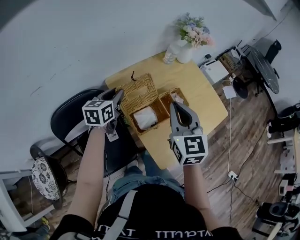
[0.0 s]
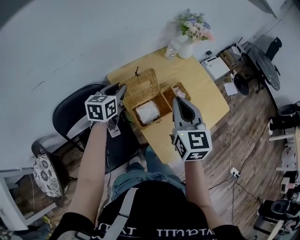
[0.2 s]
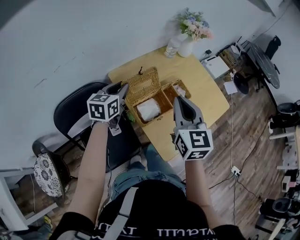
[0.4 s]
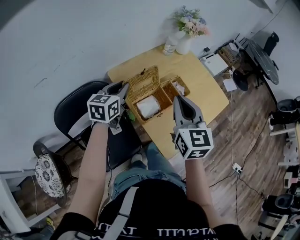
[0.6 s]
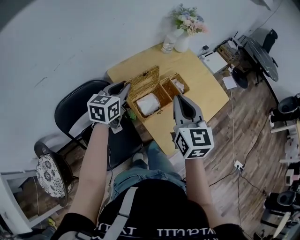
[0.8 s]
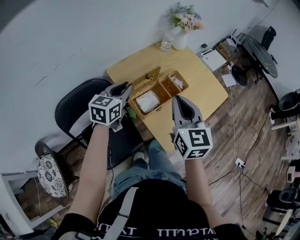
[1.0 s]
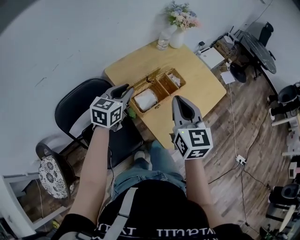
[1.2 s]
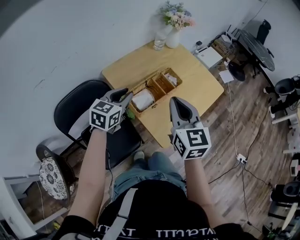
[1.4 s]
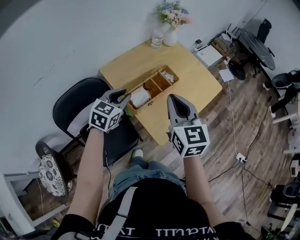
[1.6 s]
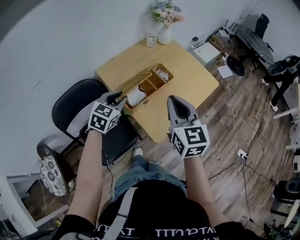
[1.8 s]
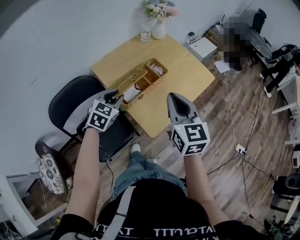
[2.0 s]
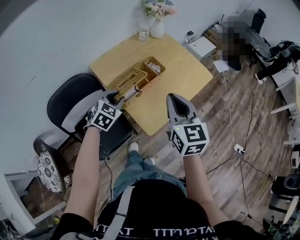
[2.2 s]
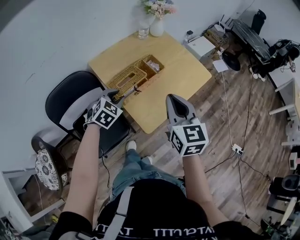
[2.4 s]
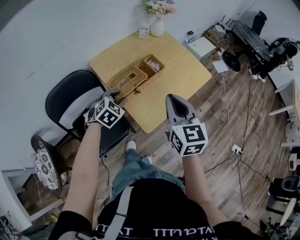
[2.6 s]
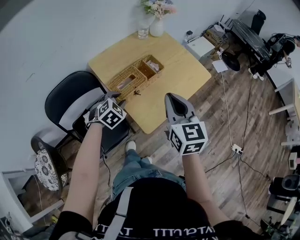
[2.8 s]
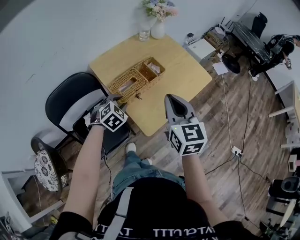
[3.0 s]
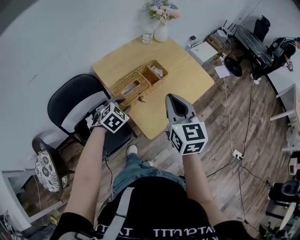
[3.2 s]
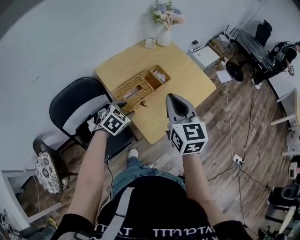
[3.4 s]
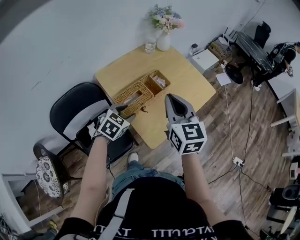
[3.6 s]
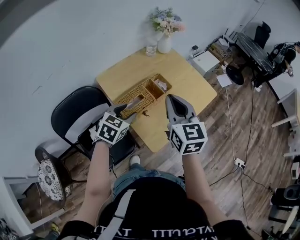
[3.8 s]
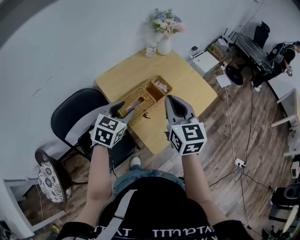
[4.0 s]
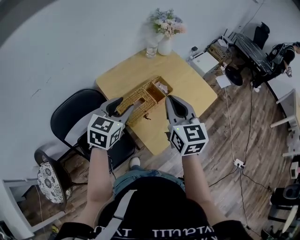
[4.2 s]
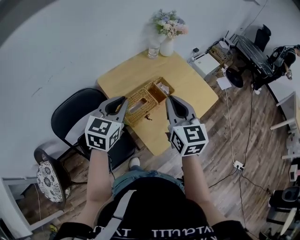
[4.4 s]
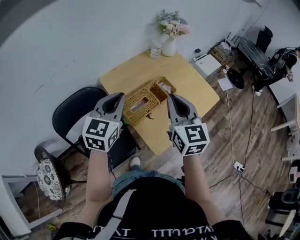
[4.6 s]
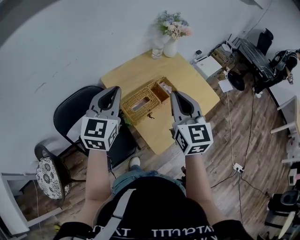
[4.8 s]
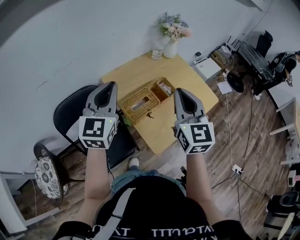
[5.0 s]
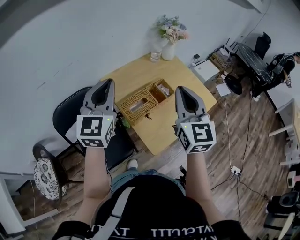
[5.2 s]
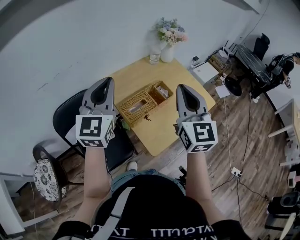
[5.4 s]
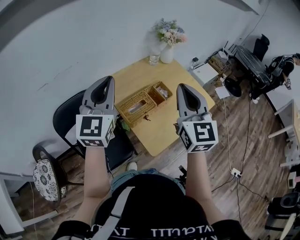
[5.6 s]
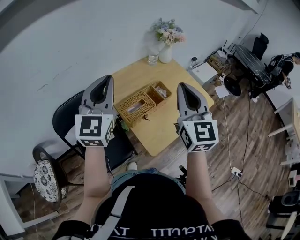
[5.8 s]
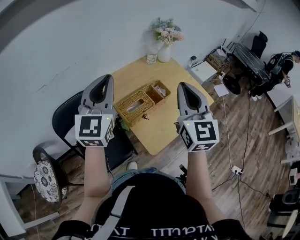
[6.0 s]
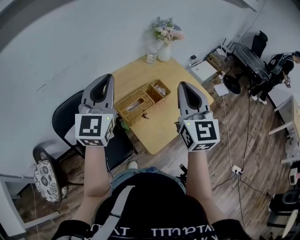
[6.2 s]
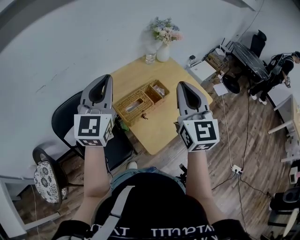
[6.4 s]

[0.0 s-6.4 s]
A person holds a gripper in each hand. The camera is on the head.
0.0 to 1.6 s: The two grippers go about 15 cm backward and to the right. The left gripper swivels approximately 30 degrees.
1.6 to 3.2 s: The right gripper travels to the right by some 5 cm; the left gripper moves downward and to the right, roughly 10 cm, and swivels approximately 30 degrees.
3.2 to 4.8 s: The right gripper goes about 10 cm upward and forward; the left gripper goes roughly 25 cm upward, tips its fingers upward by roughly 40 degrees, and closes its fingers.
4.8 to 6.4 s: Both grippers move upward, approximately 5 cm.

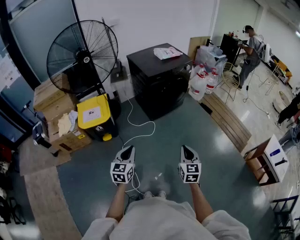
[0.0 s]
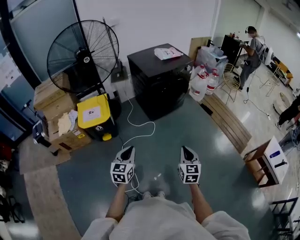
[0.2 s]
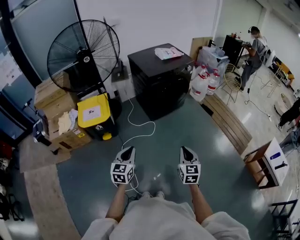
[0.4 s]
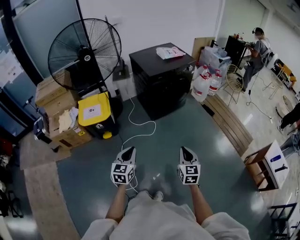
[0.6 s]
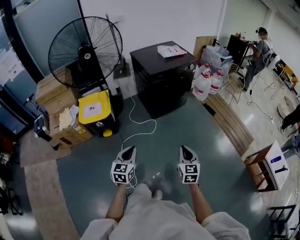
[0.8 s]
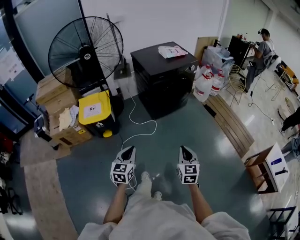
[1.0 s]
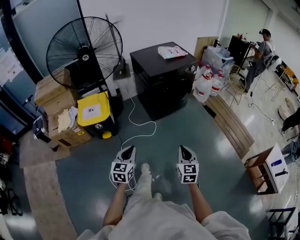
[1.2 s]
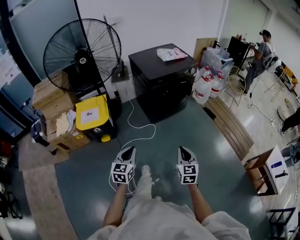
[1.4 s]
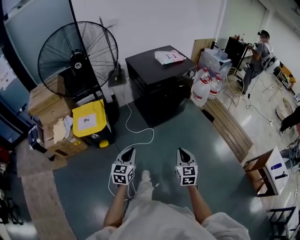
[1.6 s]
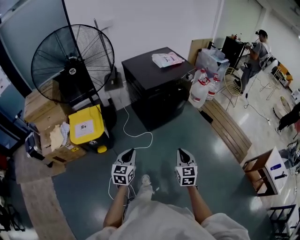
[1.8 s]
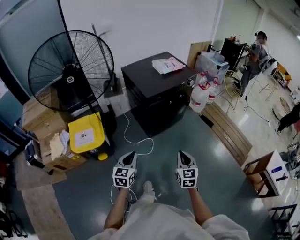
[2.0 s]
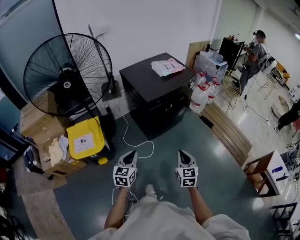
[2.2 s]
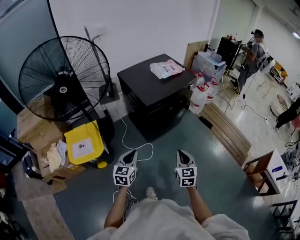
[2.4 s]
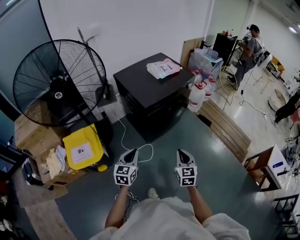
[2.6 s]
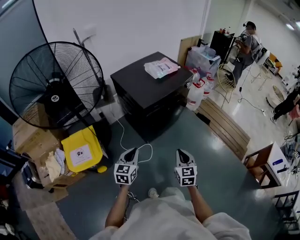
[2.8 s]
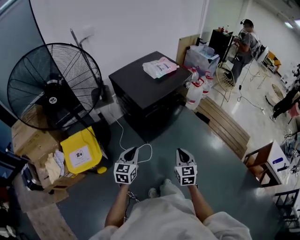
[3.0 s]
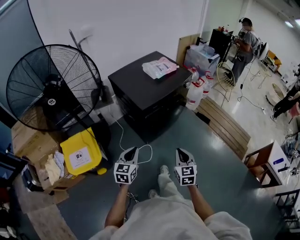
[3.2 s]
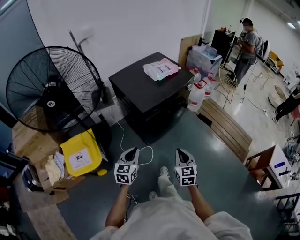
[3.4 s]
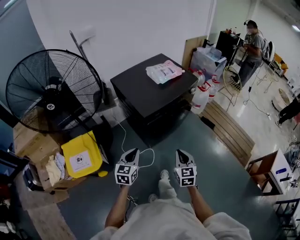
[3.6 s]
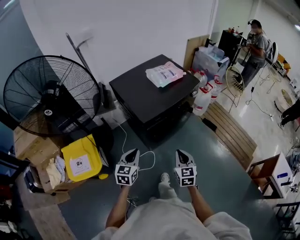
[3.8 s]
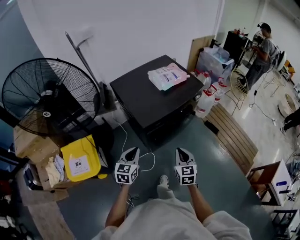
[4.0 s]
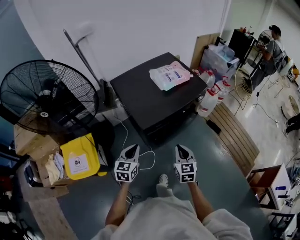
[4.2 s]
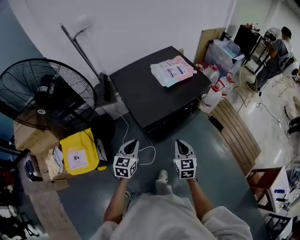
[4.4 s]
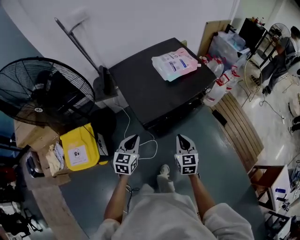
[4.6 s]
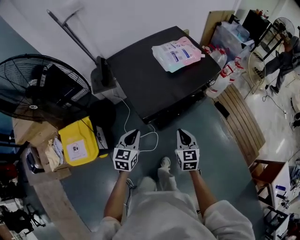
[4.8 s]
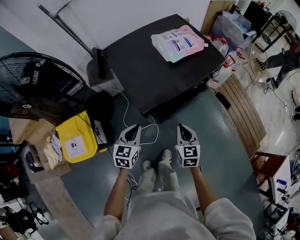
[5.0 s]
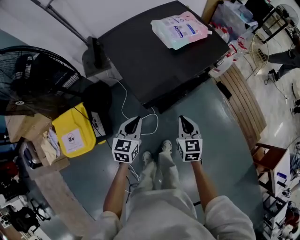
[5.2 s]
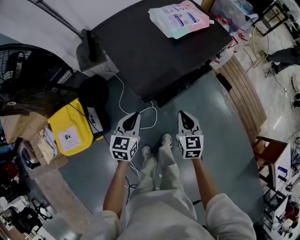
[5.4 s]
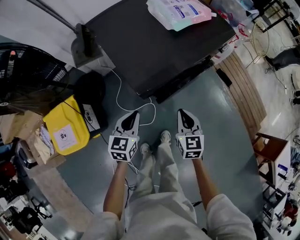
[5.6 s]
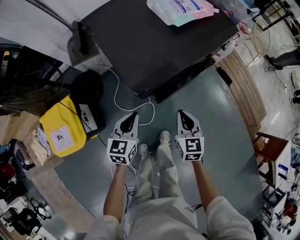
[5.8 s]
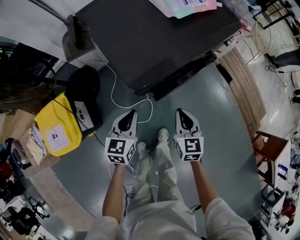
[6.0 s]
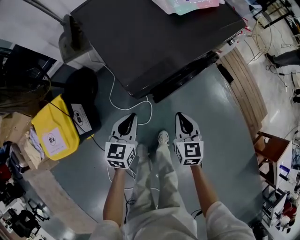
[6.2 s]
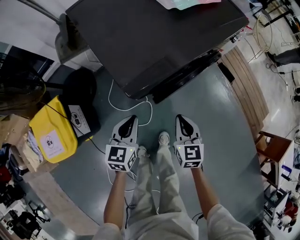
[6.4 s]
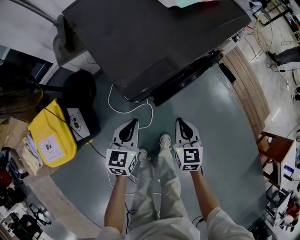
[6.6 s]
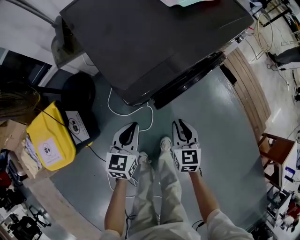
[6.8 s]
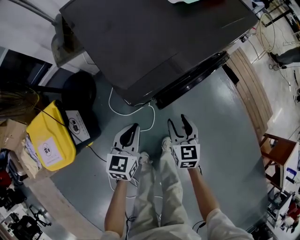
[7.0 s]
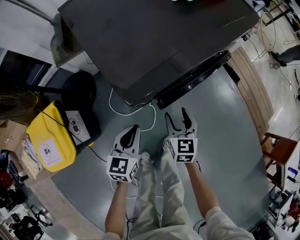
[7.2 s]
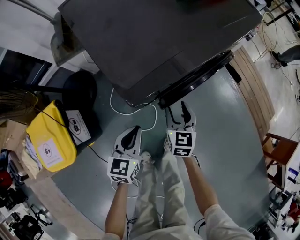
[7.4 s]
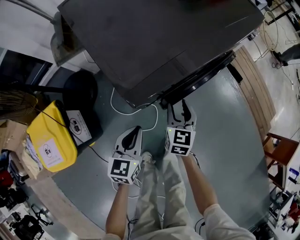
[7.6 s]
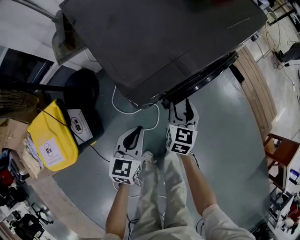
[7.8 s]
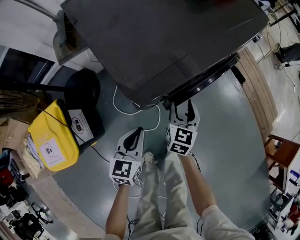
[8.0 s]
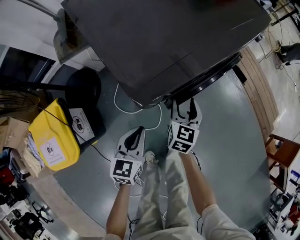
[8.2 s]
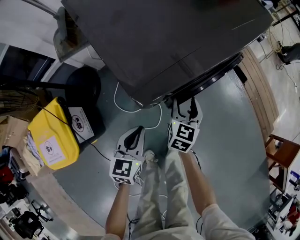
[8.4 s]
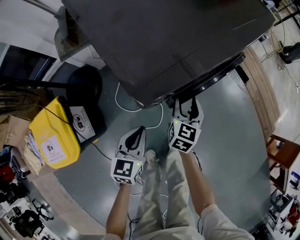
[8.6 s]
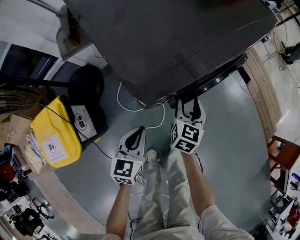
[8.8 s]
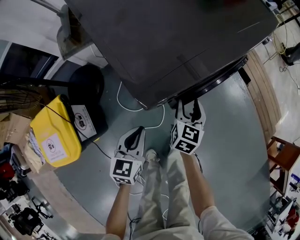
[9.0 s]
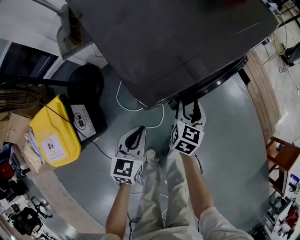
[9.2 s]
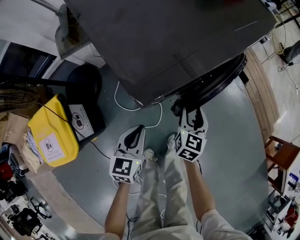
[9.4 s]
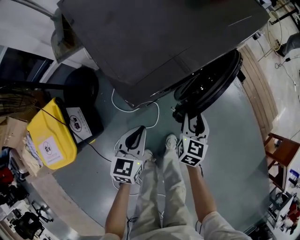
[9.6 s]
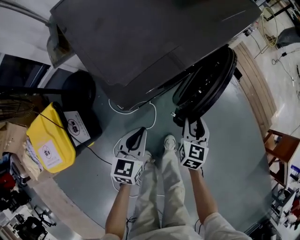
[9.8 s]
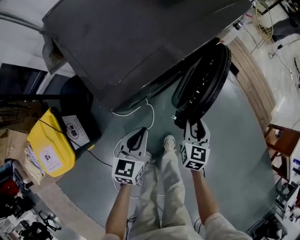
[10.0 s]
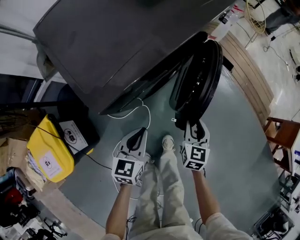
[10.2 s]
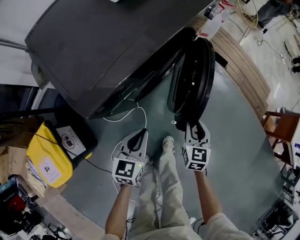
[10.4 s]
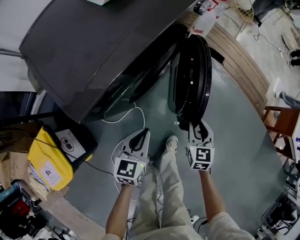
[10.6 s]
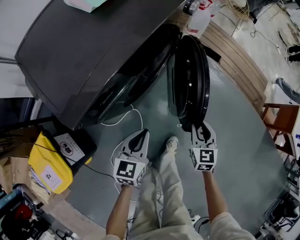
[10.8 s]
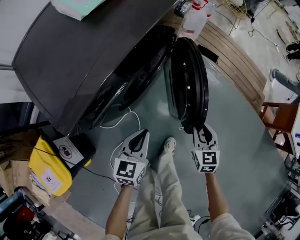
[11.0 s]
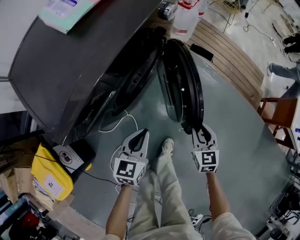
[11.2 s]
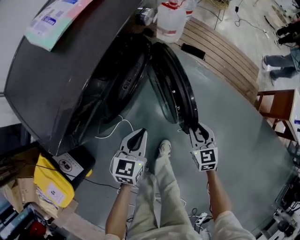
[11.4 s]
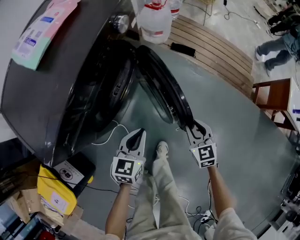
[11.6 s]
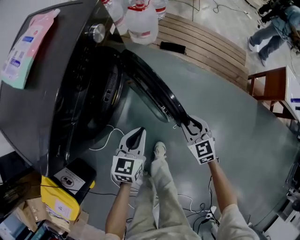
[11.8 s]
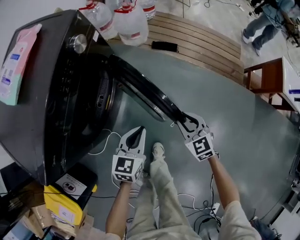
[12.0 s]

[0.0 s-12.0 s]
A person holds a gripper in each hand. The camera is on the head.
0.0 to 1.6 s: The grippers both shift forward by roughly 15 cm.
1.6 to 3.0 s: Both grippers travel together forward, approximately 25 cm.
3.0 to 4.4 s: Both grippers travel together forward, approximately 25 cm.
4.4 to 6.0 s: Both grippers travel together downward, roughly 20 cm.
6.0 to 7.6 s: The right gripper moves downward and forward, approximately 15 cm, and opens its fingers. Meanwhile the left gripper travels downward by approximately 10 cm.
7.6 to 9.0 s: The grippers move only a little.
9.0 to 10.4 s: The grippers both shift to the right by about 15 cm. The right gripper closes up.
10.4 to 12.0 s: The left gripper shifts approximately 30 cm to the right and forward, and rotates roughly 20 degrees; the right gripper goes about 25 cm to the right.

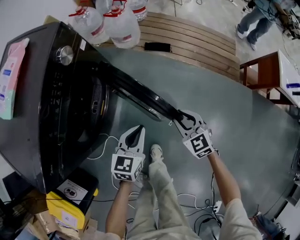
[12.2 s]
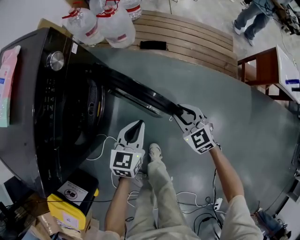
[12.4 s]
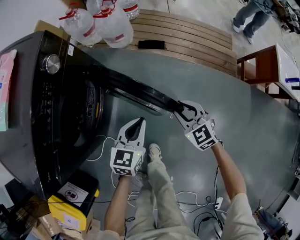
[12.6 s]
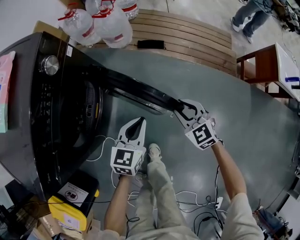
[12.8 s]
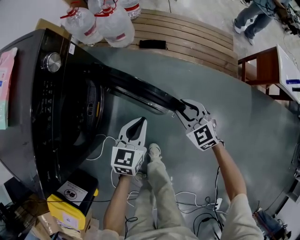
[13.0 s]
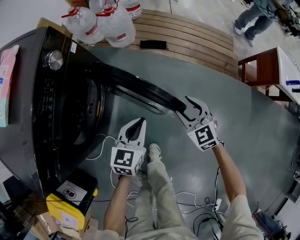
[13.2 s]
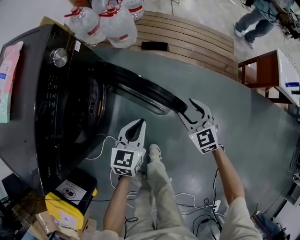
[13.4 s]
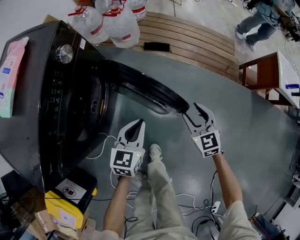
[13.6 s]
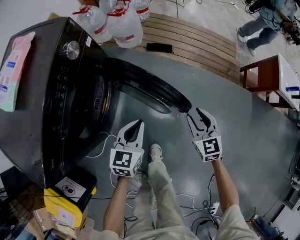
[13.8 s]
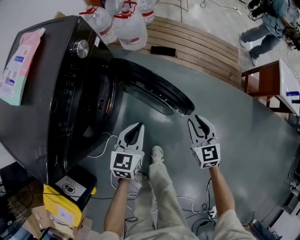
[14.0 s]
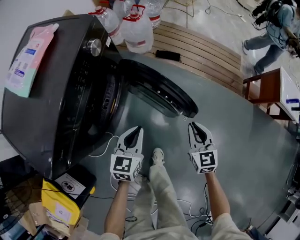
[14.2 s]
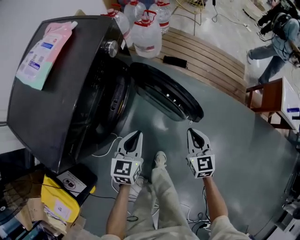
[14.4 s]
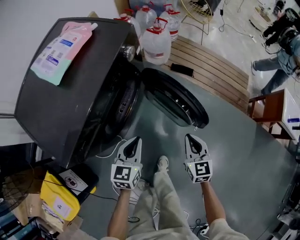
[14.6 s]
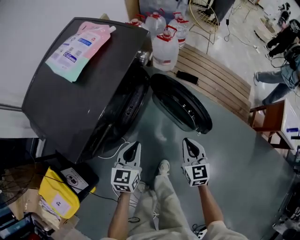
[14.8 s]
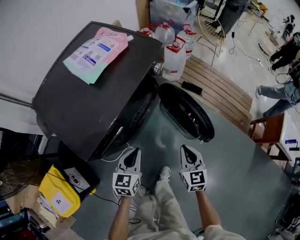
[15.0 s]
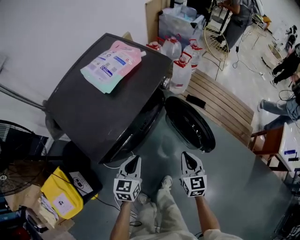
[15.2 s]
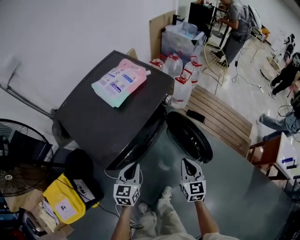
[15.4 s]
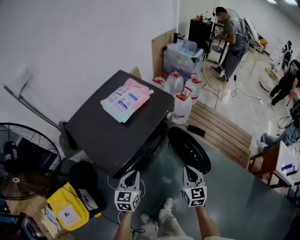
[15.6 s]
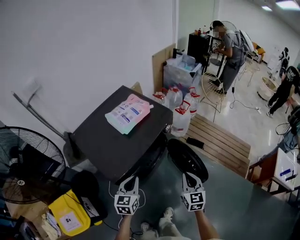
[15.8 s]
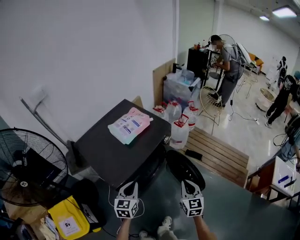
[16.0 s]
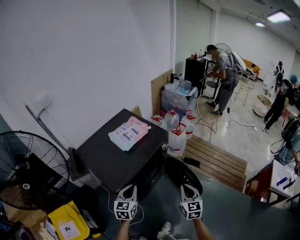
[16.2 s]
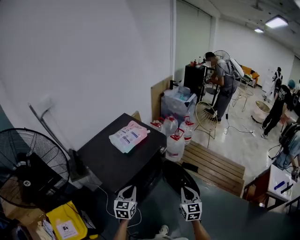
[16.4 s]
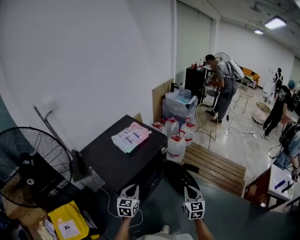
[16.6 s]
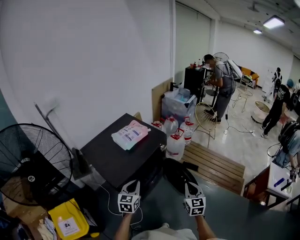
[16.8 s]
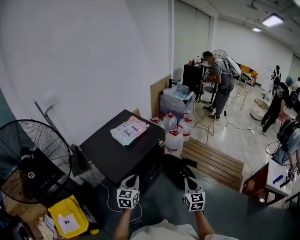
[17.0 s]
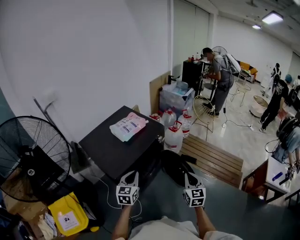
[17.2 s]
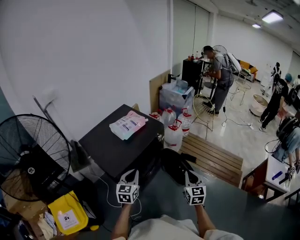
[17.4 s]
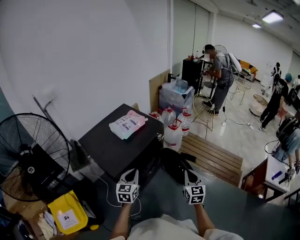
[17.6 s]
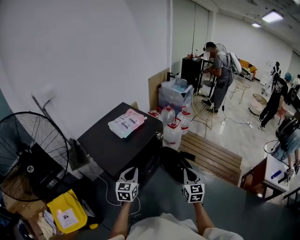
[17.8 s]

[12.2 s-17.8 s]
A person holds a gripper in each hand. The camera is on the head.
12.2 to 13.6 s: The right gripper moves to the right, approximately 5 cm, and opens.
13.6 to 15.0 s: The left gripper travels to the left, upward and backward by approximately 25 cm, and rotates about 20 degrees. The right gripper goes about 25 cm to the left and upward, and closes up.
15.0 to 16.4 s: Both grippers travel together upward, about 25 cm.
16.4 to 17.8 s: The right gripper changes place by roughly 5 cm.
